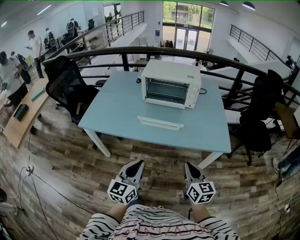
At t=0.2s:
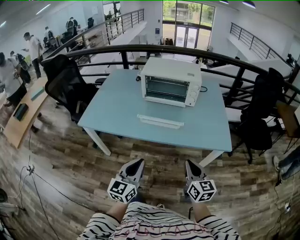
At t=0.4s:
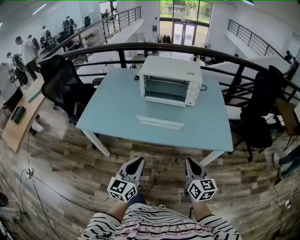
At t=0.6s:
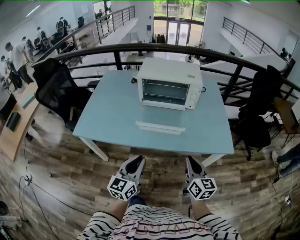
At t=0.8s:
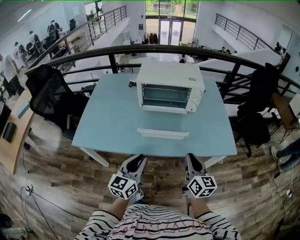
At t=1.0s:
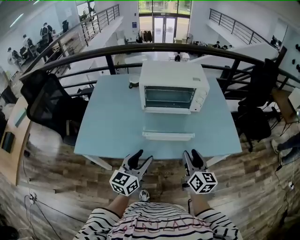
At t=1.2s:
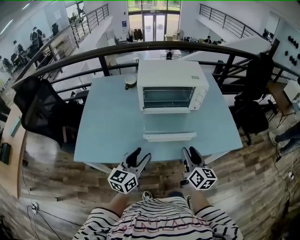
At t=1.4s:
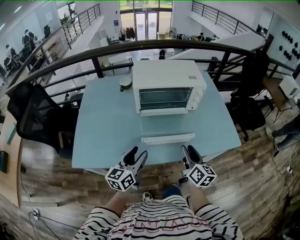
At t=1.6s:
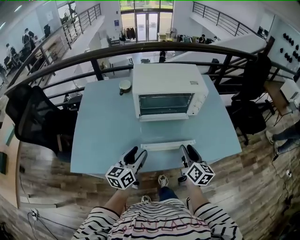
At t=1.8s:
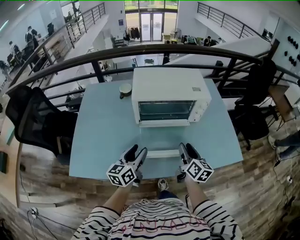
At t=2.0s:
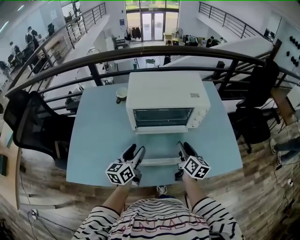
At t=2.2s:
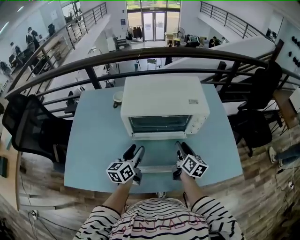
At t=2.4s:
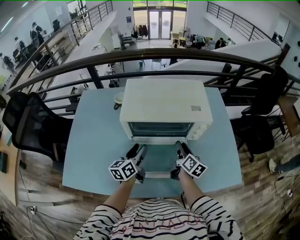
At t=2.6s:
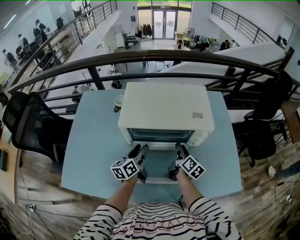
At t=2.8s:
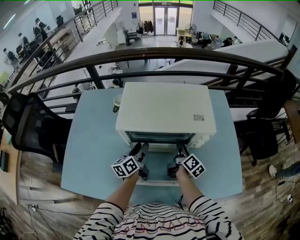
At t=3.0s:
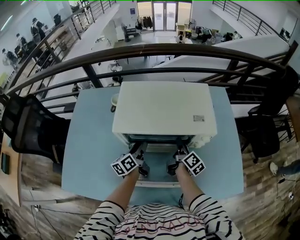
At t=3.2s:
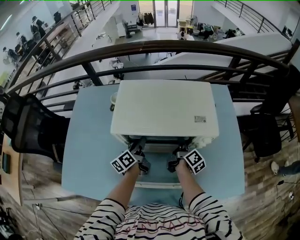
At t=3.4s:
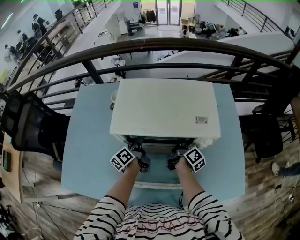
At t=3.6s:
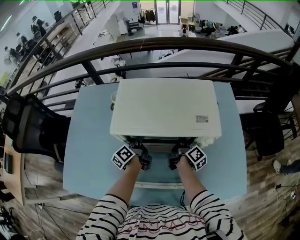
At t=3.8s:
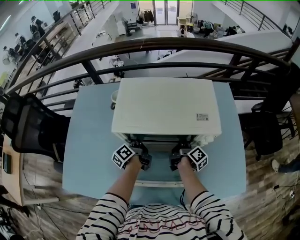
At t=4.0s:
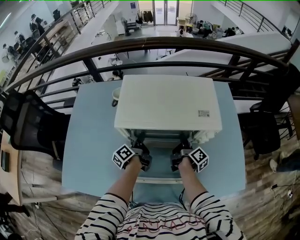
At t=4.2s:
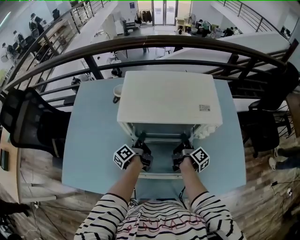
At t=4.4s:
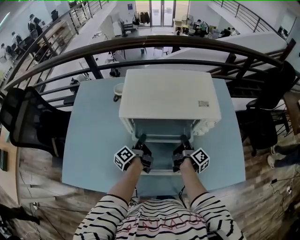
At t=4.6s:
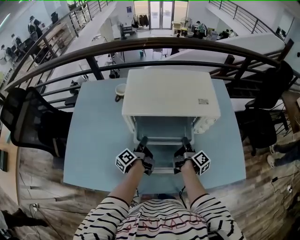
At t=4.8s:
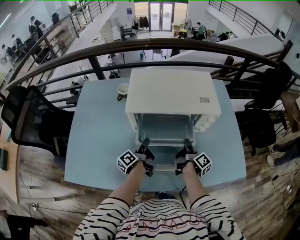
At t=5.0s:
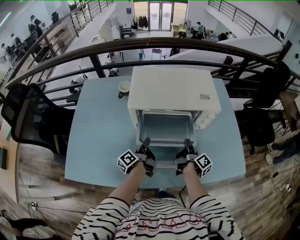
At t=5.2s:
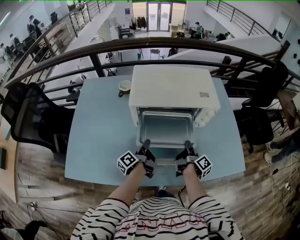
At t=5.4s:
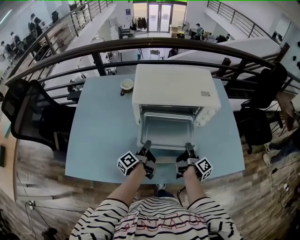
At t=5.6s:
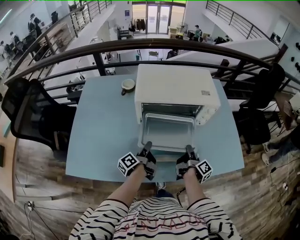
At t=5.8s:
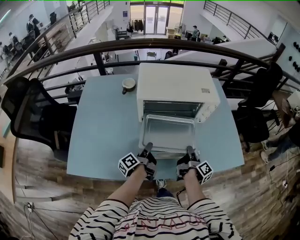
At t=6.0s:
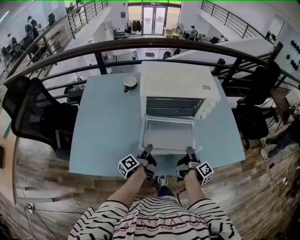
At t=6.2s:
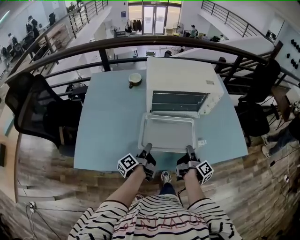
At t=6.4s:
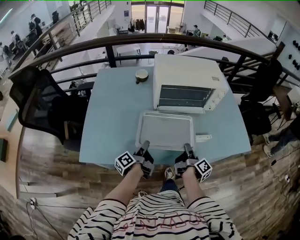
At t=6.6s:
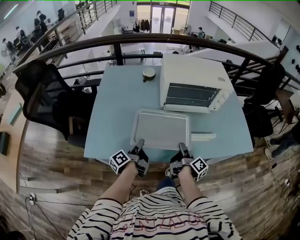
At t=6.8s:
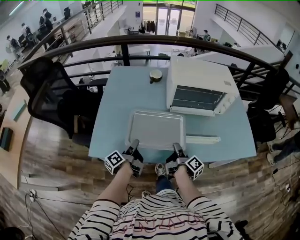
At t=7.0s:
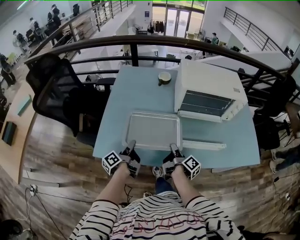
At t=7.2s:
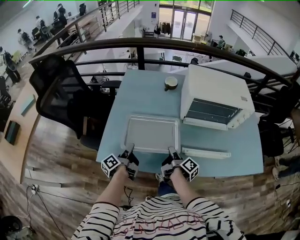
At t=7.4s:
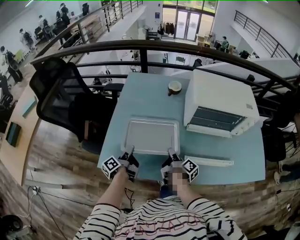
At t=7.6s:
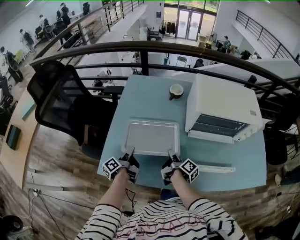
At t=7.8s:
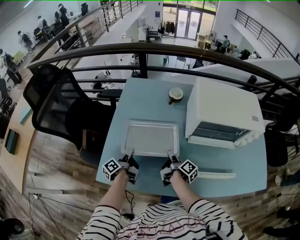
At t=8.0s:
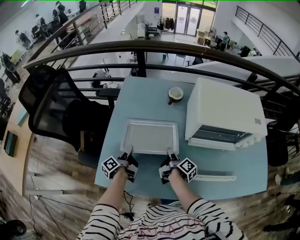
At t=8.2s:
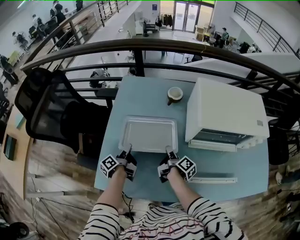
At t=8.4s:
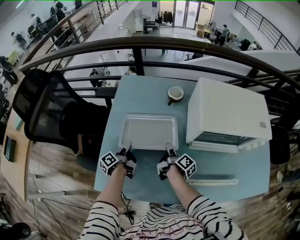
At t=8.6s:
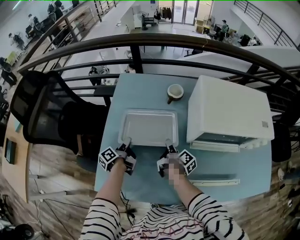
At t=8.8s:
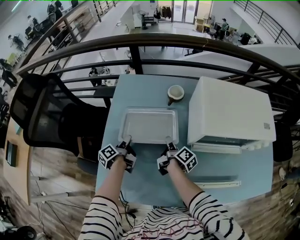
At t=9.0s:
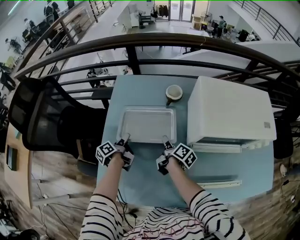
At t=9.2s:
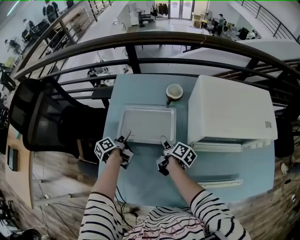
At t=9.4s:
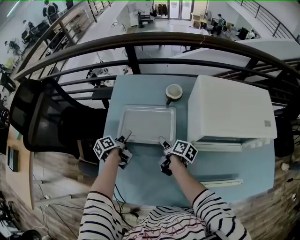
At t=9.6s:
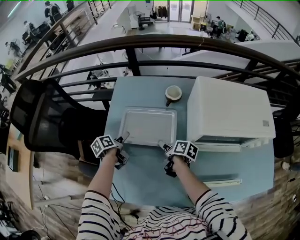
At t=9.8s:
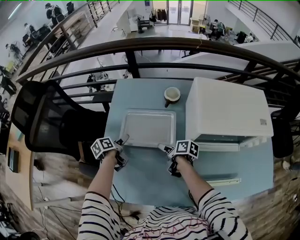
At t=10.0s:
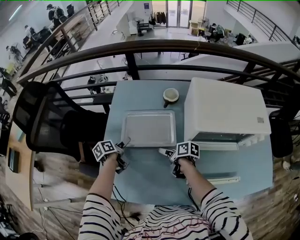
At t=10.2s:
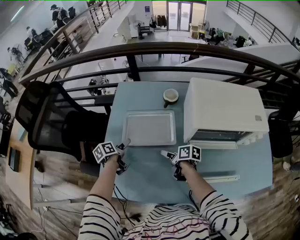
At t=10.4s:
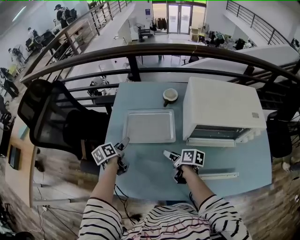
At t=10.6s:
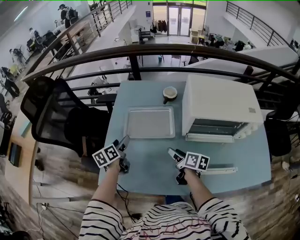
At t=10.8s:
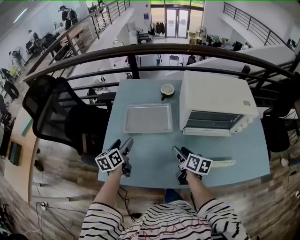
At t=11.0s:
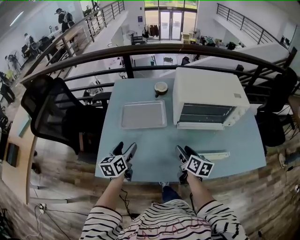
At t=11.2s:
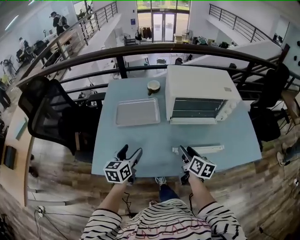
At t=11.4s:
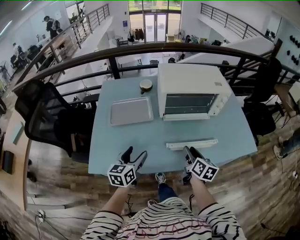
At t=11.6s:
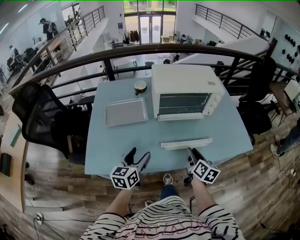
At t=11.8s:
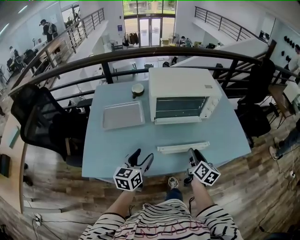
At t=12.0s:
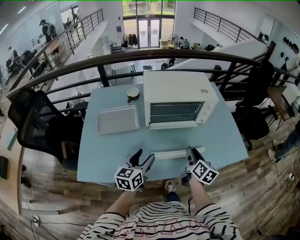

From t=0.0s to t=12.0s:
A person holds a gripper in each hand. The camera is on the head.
From t=0.0s to t=1.6s: Both grippers move forward and to the left, some 30 cm. The right gripper rotates some 30 degrees, and opens. The left gripper turns by about 20 degrees, and opens up.
From t=1.6s to t=3.0s: Both grippers move forward, about 30 cm. The left gripper turns by some 30 degrees. The right gripper swivels approximately 30 degrees.
From t=3.0s to t=4.4s: The left gripper moves about 5 cm, and swivels some 30 degrees; the right gripper shifts about 5 cm backward, and closes.
From t=4.4s to t=6.0s: The grippers both shift backward by approximately 20 cm.
From t=6.0s to t=7.6s: The grippers both shift to the left by approximately 35 cm. The right gripper swivels roughly 30 degrees.
From t=7.6s to t=9.0s: The grippers both shift forward by some 20 cm.
From t=9.0s to t=10.4s: The left gripper shifts some 10 cm upward and backward, rotates roughly 30 degrees, and opens its fingers, while the right gripper travels backward by approximately 10 cm, swivels approximately 30 degrees, and opens up.
From t=10.4s to t=12.0s: The left gripper ends up some 40 cm from where it was, and rotates around the line of its fingers by roughly 40 degrees, clockwise from behind. Meanwhile the right gripper changes place by approximately 35 cm, rotates about 50 degrees, and closes.

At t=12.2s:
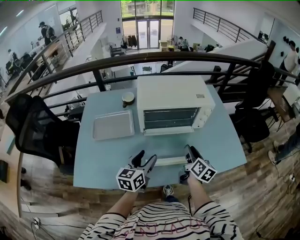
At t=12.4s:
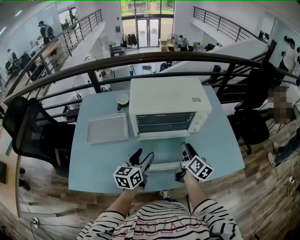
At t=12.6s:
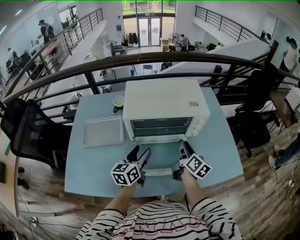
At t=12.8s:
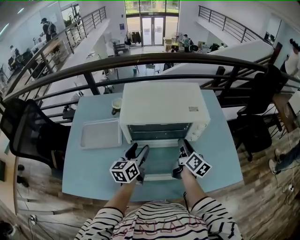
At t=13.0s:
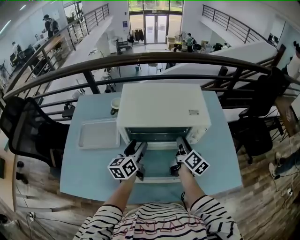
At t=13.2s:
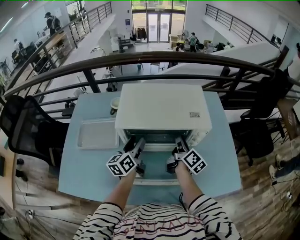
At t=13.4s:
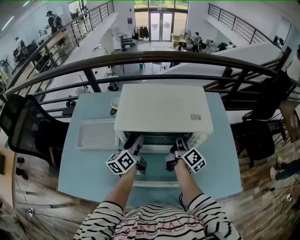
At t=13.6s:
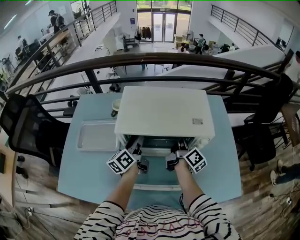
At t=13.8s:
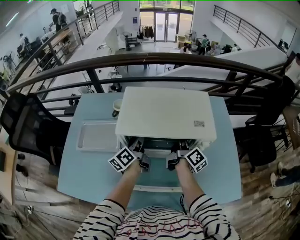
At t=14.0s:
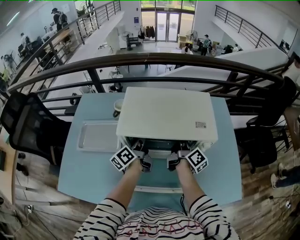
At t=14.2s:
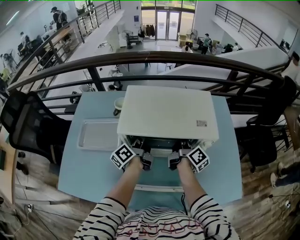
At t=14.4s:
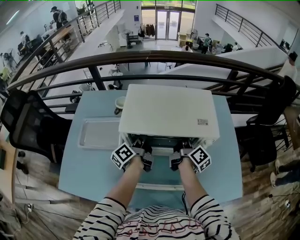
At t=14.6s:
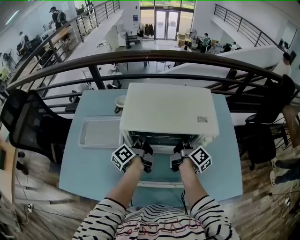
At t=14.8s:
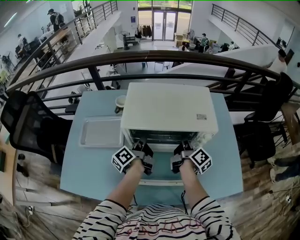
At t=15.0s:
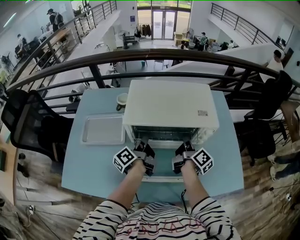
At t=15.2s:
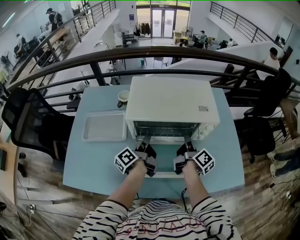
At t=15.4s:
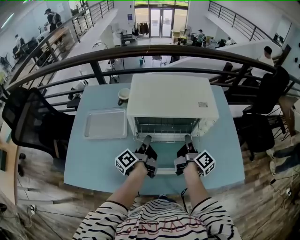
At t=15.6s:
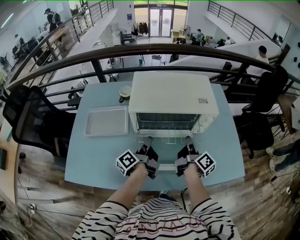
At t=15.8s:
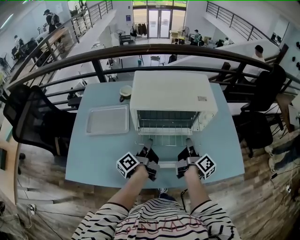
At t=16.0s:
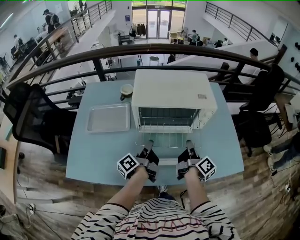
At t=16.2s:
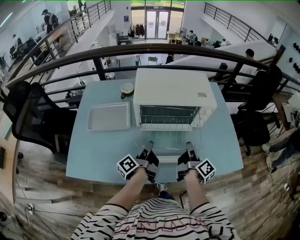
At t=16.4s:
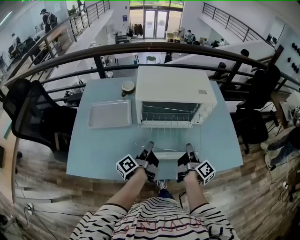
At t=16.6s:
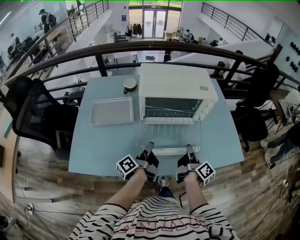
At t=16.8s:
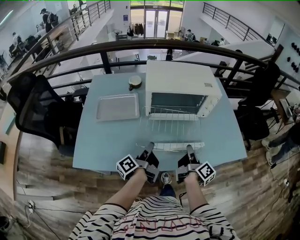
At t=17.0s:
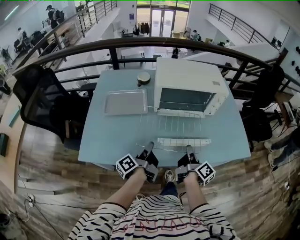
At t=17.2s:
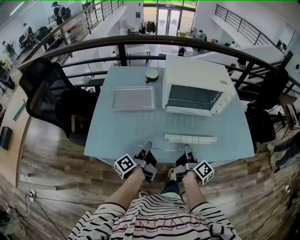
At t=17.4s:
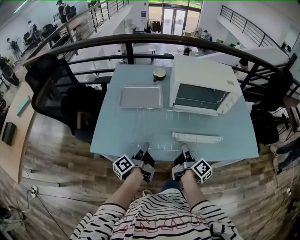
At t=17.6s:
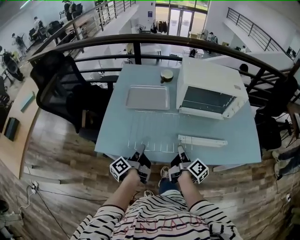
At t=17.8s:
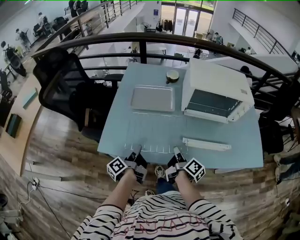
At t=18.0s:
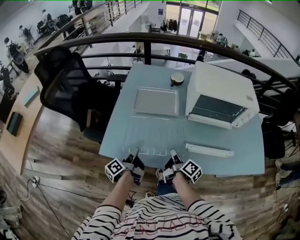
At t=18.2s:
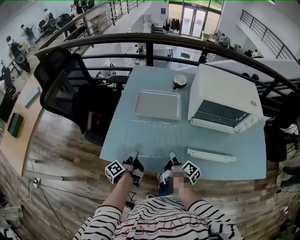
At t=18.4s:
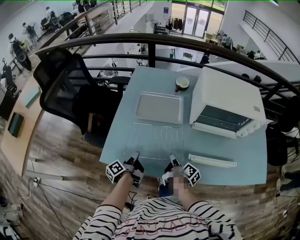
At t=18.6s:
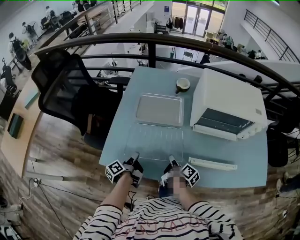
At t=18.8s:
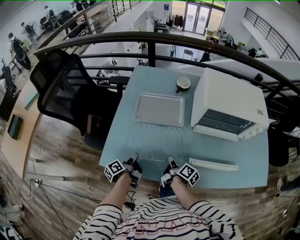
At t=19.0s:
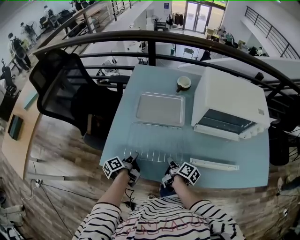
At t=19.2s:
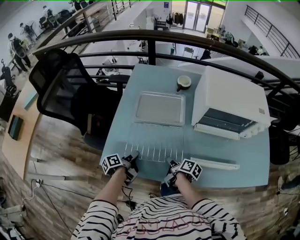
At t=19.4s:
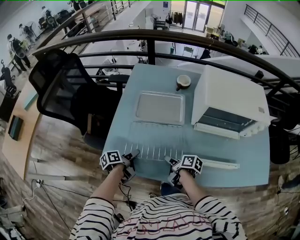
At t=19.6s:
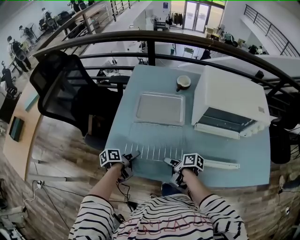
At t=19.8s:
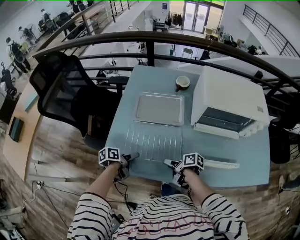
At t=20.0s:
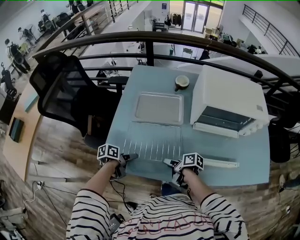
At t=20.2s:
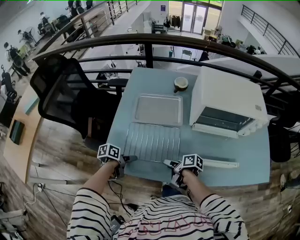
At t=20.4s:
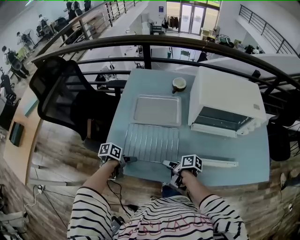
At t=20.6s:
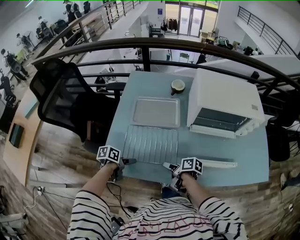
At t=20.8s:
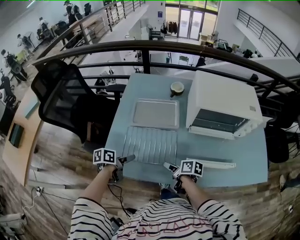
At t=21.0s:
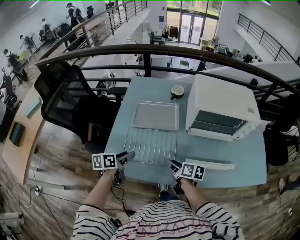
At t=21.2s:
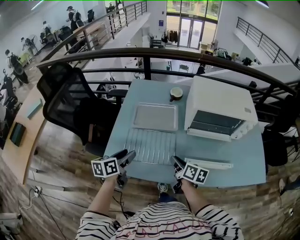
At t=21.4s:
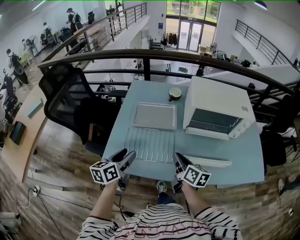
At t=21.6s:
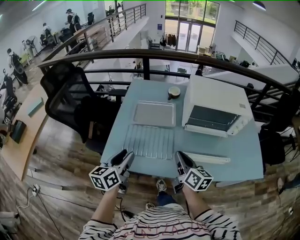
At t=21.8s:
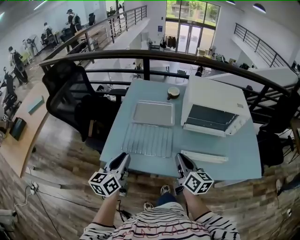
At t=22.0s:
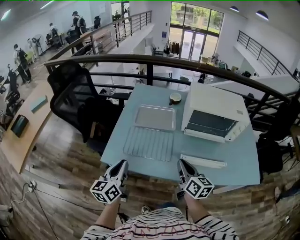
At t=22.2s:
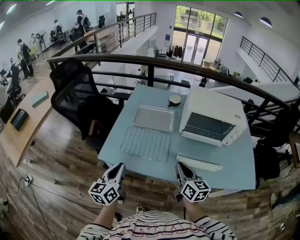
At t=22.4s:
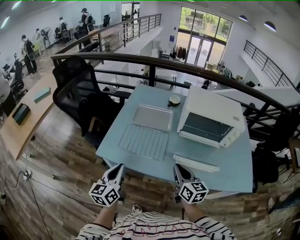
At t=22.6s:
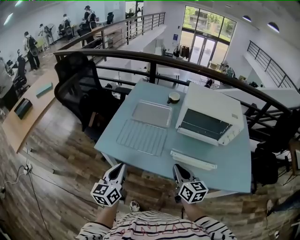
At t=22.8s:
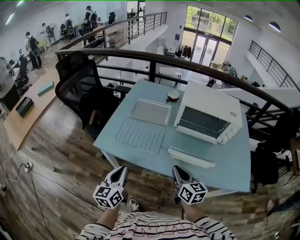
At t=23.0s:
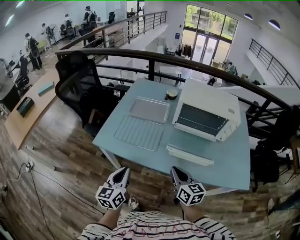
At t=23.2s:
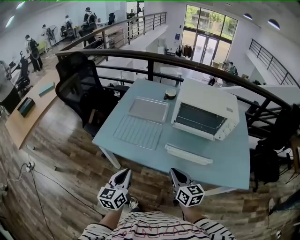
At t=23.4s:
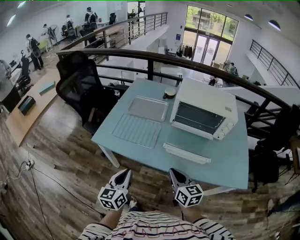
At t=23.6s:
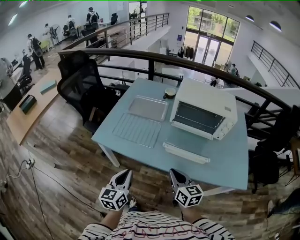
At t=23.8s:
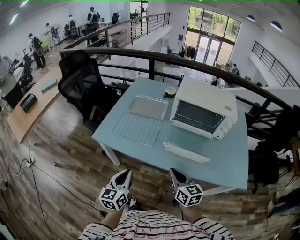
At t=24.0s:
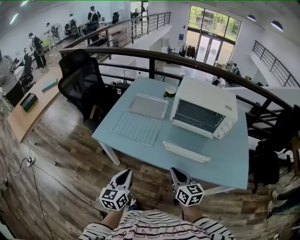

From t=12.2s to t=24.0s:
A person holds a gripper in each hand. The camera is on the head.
From t=12.2s to t=13.6s: Both grippers travel together forward, approximately 25 cm. The right gripper turns by approximately 30 degrees. The left gripper turns by approximately 40 degrees.
From t=13.6s to t=15.2s: Both grippers move backward, some 10 cm. The left gripper swivels some 30 degrees, and closes.
From t=15.2s to t=16.6s: The two grippers go some 20 cm backward.
From t=16.6s to t=18.2s: The grippers both shift to the left by roughly 30 cm. The right gripper rotates approximately 30 degrees. Meanwhile the left gripper turns by approximately 20 degrees.
From t=18.2s to t=19.6s: The left gripper shifts by roughly 5 cm, turns by some 40 degrees, and opens its fingers. The right gripper moves approximately 5 cm, turns by about 40 degrees, and opens up.
From t=19.6s to t=21.0s: Both grippers travel together upward, some 10 cm. The right gripper turns by some 30 degrees. Meanwhile the left gripper changes its angle by approximately 30 degrees.
From t=21.0s to t=22.6s: The left gripper goes roughly 25 cm backward and upward, rotates about 40 degrees, and closes. The right gripper heads backward, upward and to the right, covering some 20 cm, rotates some 40 degrees, and closes its fingers.
From t=22.6s to t=24.0s: The right gripper heads backward, covering some 10 cm, while the left gripper goes roughly 15 cm backward and to the right.
